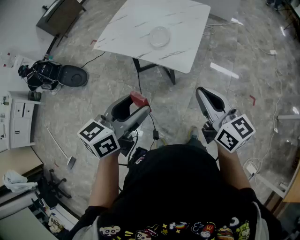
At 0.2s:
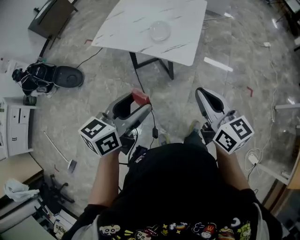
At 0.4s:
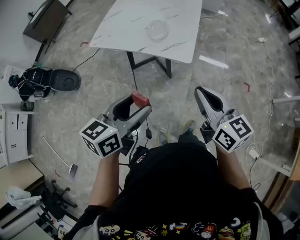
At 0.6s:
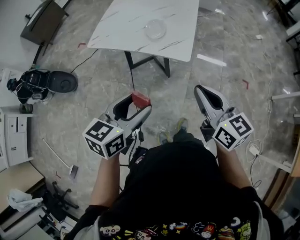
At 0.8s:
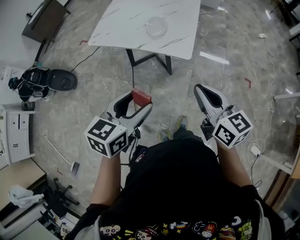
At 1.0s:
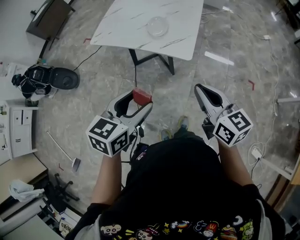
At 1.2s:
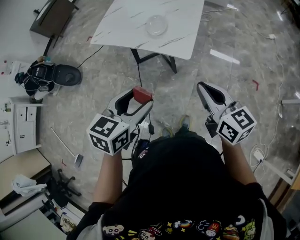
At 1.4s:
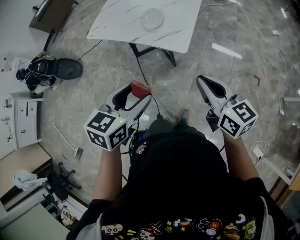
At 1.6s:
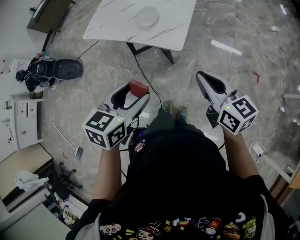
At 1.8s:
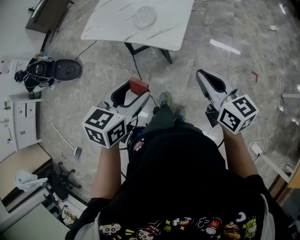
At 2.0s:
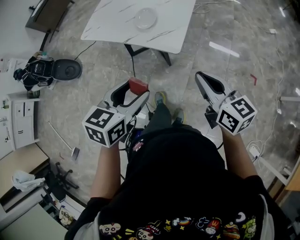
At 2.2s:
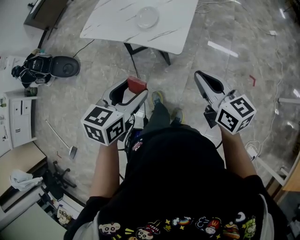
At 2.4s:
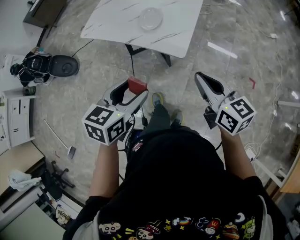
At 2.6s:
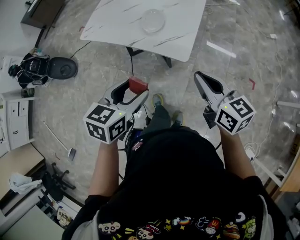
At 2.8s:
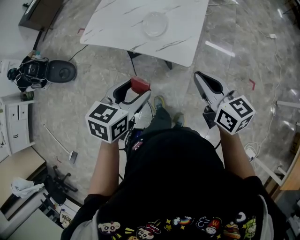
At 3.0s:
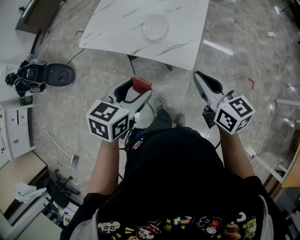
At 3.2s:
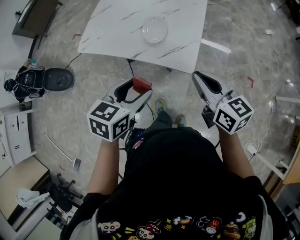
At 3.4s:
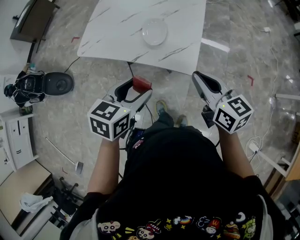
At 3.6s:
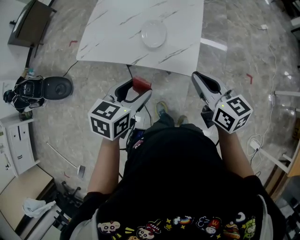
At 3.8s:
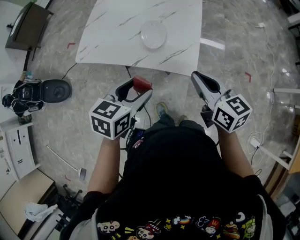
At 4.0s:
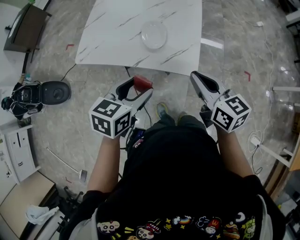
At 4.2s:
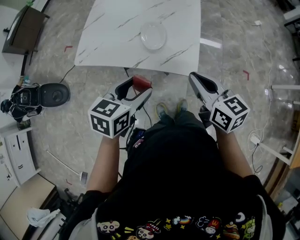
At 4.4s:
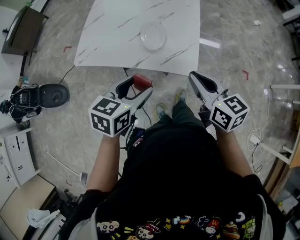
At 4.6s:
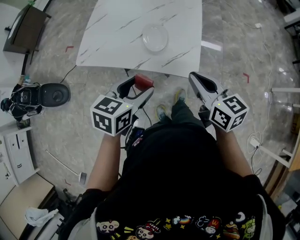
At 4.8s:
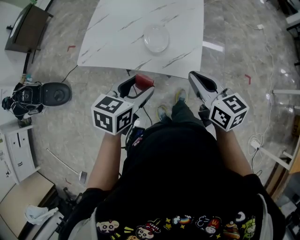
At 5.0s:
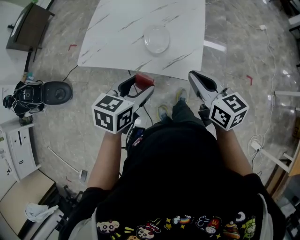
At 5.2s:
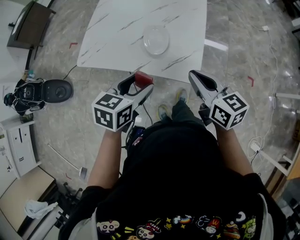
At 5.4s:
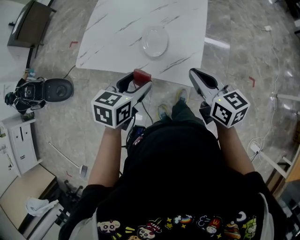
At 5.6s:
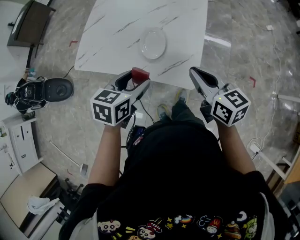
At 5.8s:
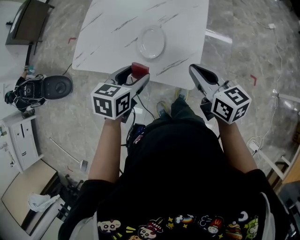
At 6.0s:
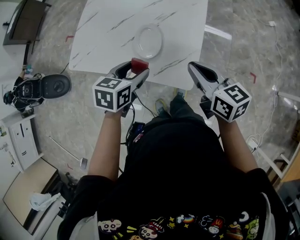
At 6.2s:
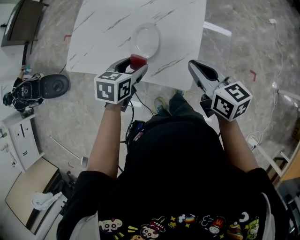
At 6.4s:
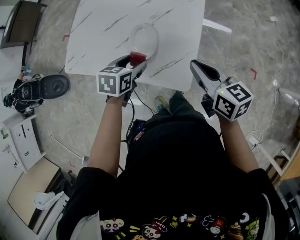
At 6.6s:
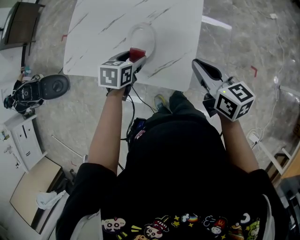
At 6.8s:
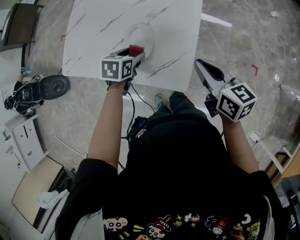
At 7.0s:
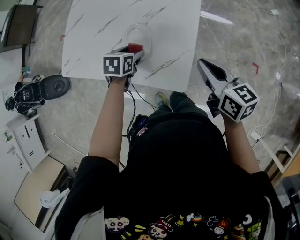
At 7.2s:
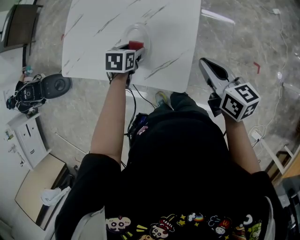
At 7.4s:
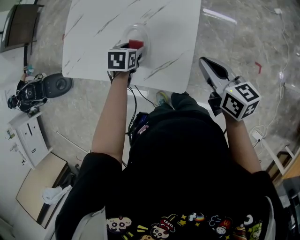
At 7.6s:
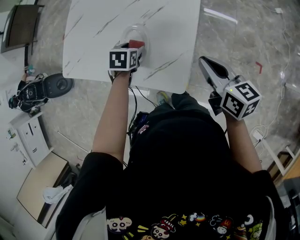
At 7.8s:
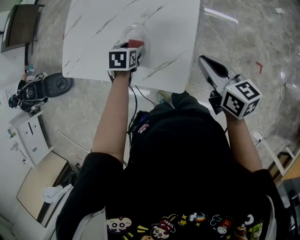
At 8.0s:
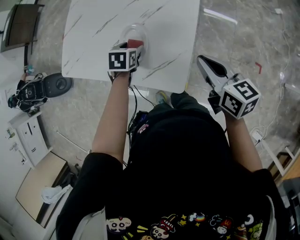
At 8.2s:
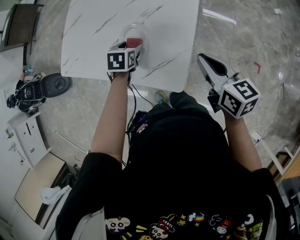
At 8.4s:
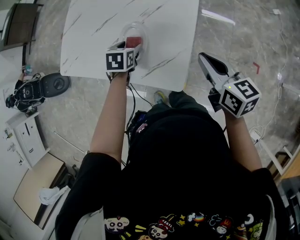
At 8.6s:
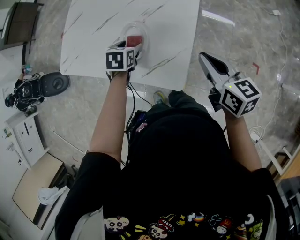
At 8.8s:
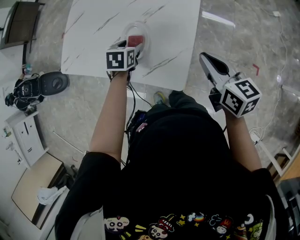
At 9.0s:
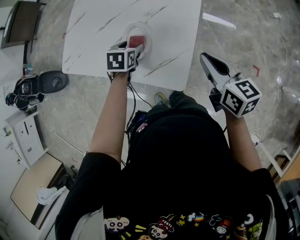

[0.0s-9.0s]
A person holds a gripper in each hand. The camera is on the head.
0.0s to 1.6s: Both grippers move downward, some 5 cm. The left gripper rotates approximately 20 degrees.
1.6s to 3.0s: Both grippers travel together forward and to the left, roughly 15 cm.
3.0s to 4.4s: The left gripper shifts about 10 cm forward and to the left; the right gripper goes approximately 5 cm to the left.
4.4s to 6.0s: The left gripper moves forward and downward, approximately 15 cm; the right gripper goes some 15 cm forward.
6.0s to 7.6s: The left gripper is displaced downward and forward by some 20 cm; the right gripper goes about 10 cm to the right and forward.
7.6s to 9.0s: The grippers stay close to where they were, moving slightly.

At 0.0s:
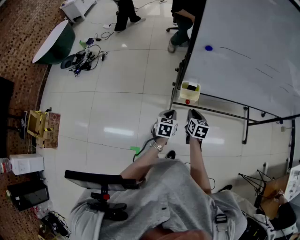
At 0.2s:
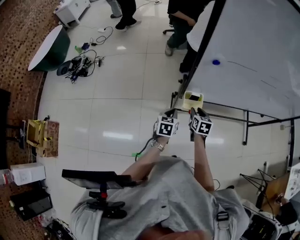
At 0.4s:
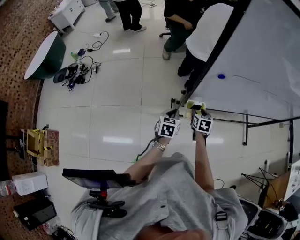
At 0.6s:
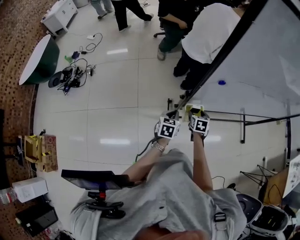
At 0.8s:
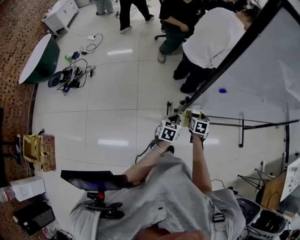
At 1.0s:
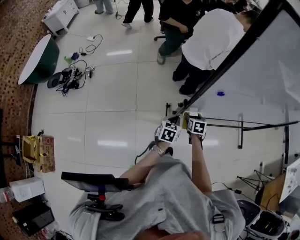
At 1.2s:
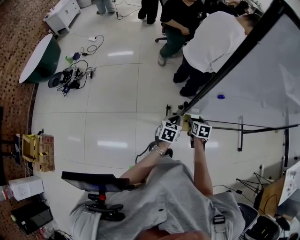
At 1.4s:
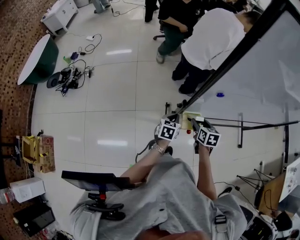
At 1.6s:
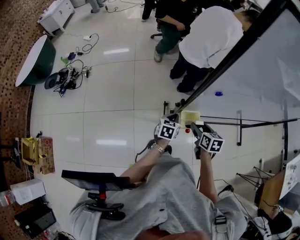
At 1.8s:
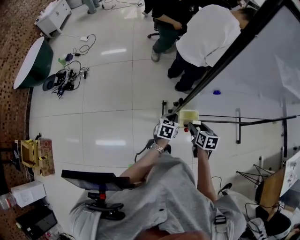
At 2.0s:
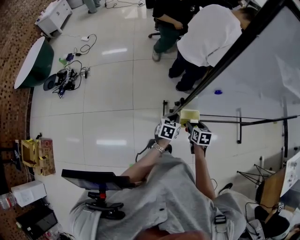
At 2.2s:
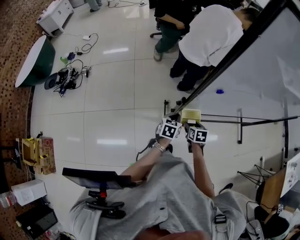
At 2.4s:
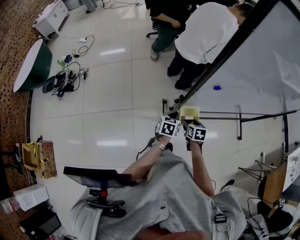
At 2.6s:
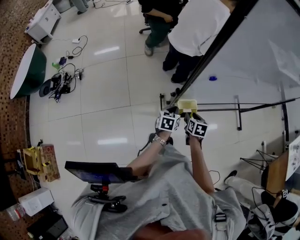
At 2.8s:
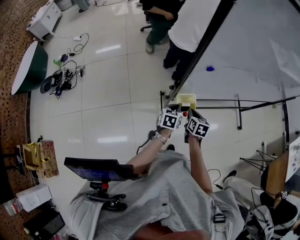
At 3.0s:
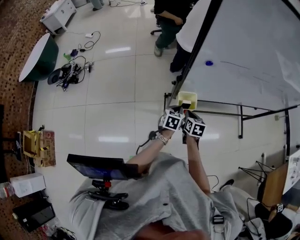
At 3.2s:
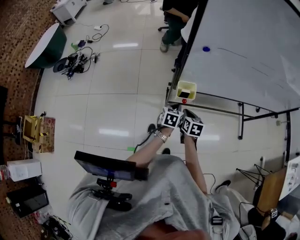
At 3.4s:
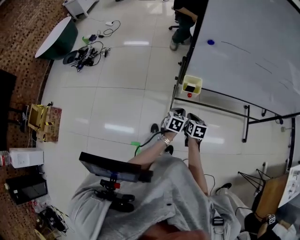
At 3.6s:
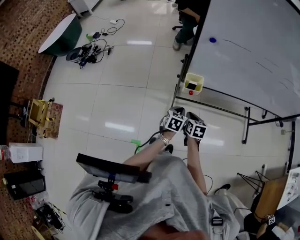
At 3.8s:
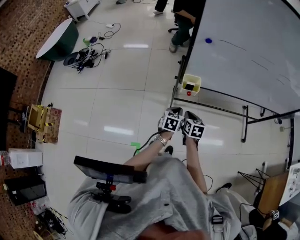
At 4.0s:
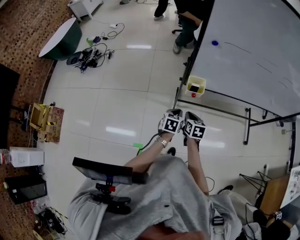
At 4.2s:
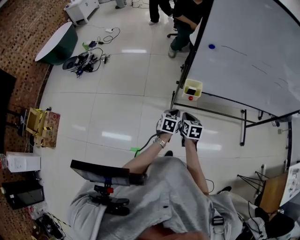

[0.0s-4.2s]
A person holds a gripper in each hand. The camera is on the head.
0.0s to 1.4s: Both grippers move forward, approximately 15 cm. The right gripper opens.
1.4s to 2.8s: The left gripper is displaced to the right by roughly 5 cm. Meanwhile the right gripper is displaced backward by roughly 5 cm, reaches some 10 cm downward, then returns, and closes.
2.8s to 4.2s: Both grippers travel together backward, about 15 cm. The right gripper rotates roughly 20 degrees.

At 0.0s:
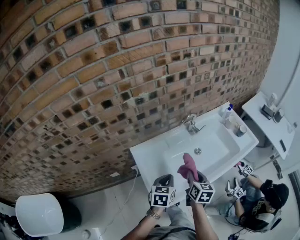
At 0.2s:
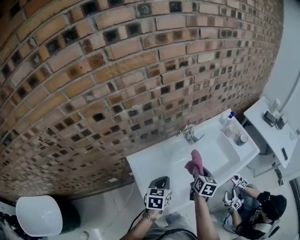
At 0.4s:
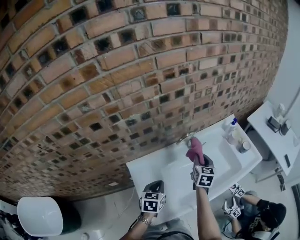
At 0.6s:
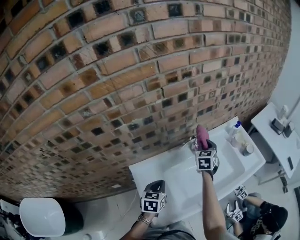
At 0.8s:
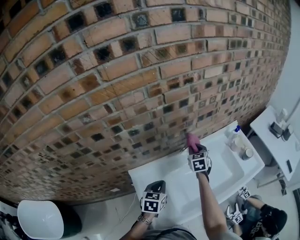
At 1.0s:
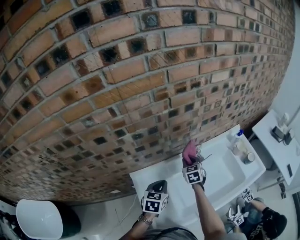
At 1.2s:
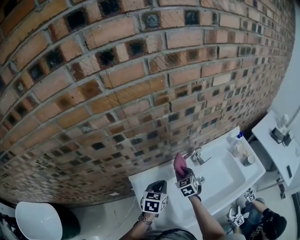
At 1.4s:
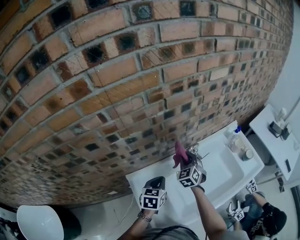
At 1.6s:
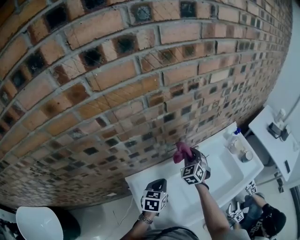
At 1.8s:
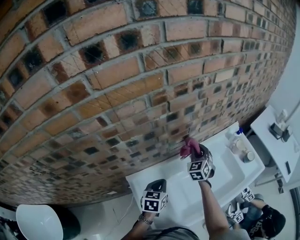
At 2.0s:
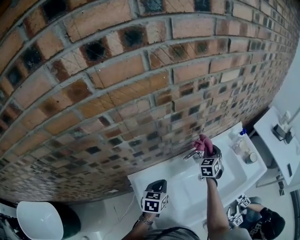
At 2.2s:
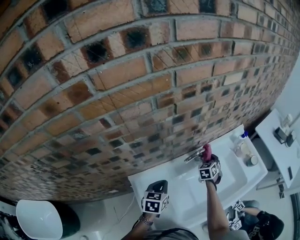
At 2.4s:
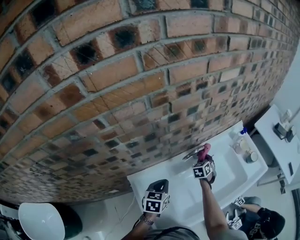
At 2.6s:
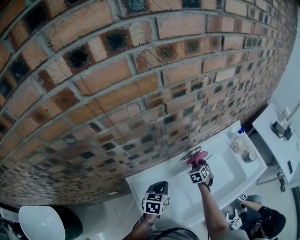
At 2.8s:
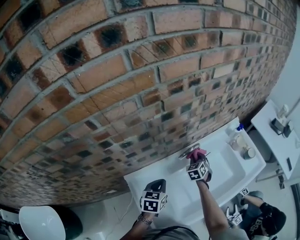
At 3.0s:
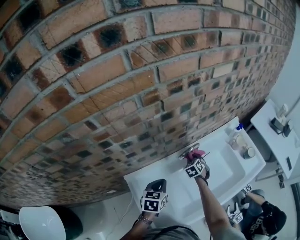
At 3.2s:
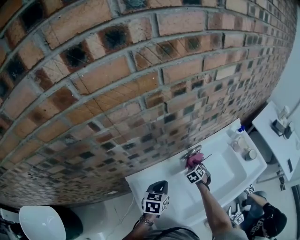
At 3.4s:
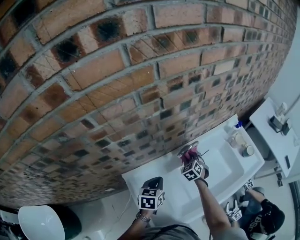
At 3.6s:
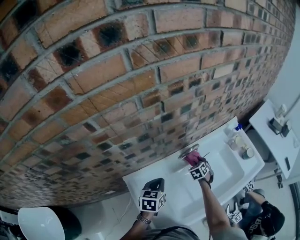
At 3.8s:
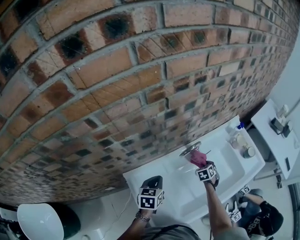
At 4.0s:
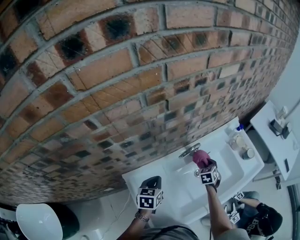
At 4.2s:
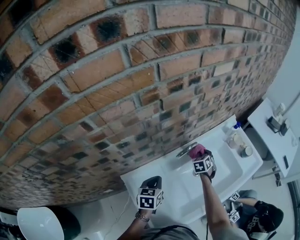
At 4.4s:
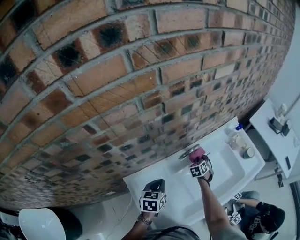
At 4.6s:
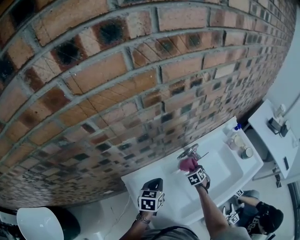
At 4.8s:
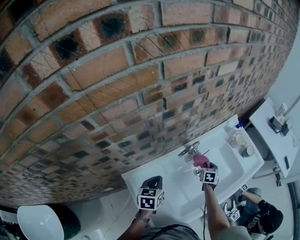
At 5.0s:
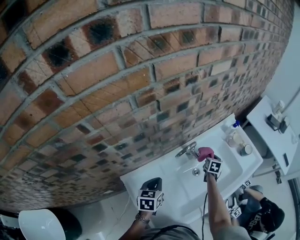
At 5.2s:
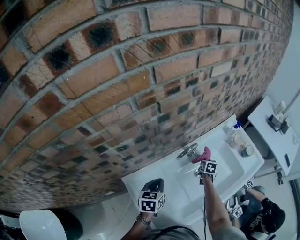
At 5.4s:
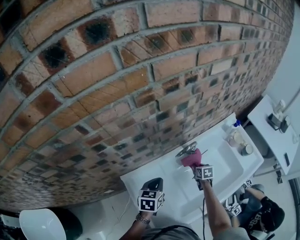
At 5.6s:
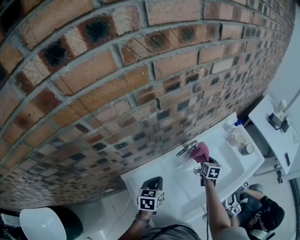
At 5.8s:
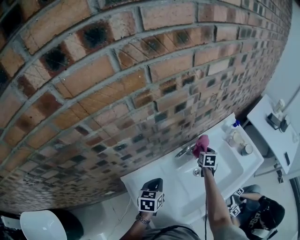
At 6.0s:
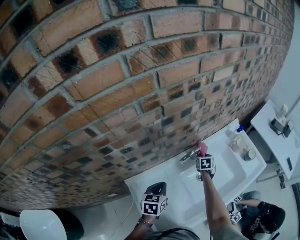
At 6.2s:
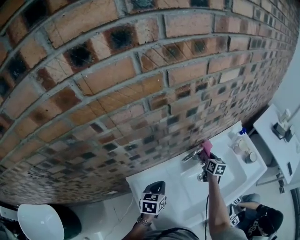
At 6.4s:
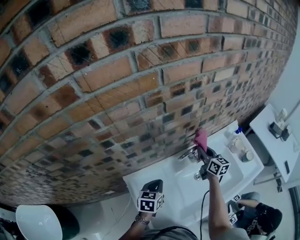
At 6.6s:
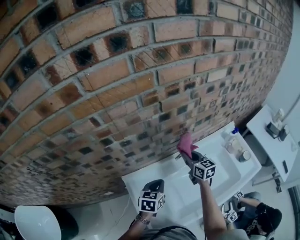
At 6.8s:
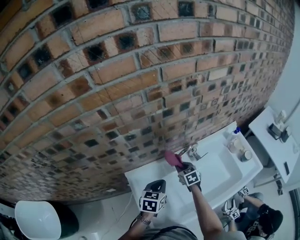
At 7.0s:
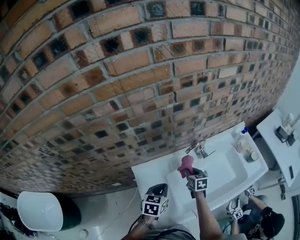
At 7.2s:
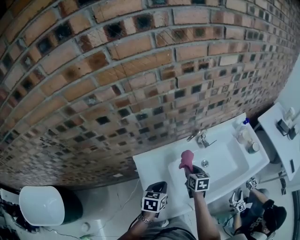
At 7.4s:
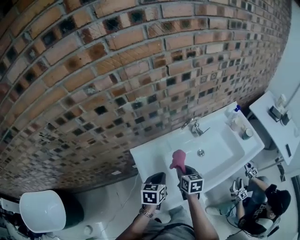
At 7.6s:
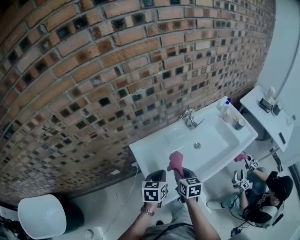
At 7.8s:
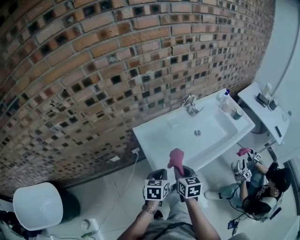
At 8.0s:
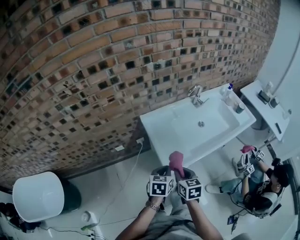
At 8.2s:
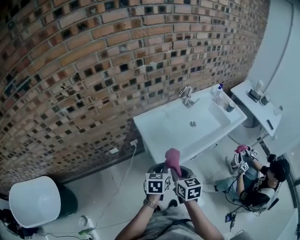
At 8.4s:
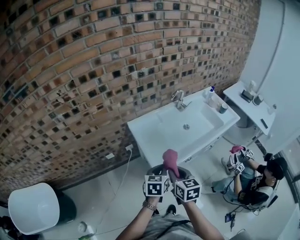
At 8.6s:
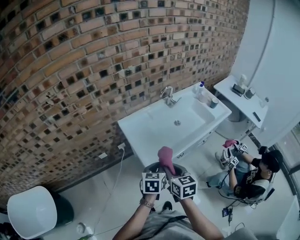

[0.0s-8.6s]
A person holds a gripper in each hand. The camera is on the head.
0.0s to 1.4s: The right gripper goes forward and backward, about 30 cm each way, reversing 2 times, and twists roughly 50 degrees counterclockwise, seen from behind; the left gripper moves forward, roughly 20 cm.
1.4s to 2.8s: The right gripper travels downward, to the right and forward by about 15 cm.
2.8s to 4.4s: The right gripper swings left and right, about 15 cm each way, with 2 reversals.
4.4s to 5.8s: The right gripper moves left and right over some 10 cm, changing direction 2 times, and swivels roughly 30 degrees.
5.8s to 7.2s: The left gripper moves backward, roughly 15 cm, while the right gripper moves backward and to the left, approximately 25 cm, and changes its angle by some 30 degrees.
7.2s to 8.6s: Both grippers move backward, roughly 35 cm.

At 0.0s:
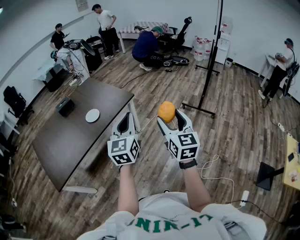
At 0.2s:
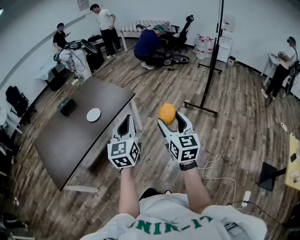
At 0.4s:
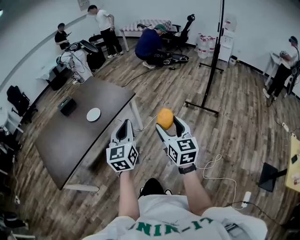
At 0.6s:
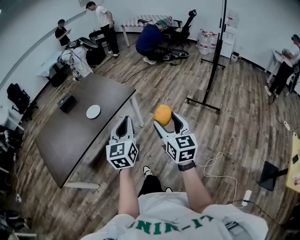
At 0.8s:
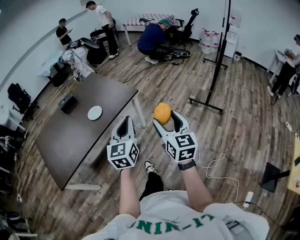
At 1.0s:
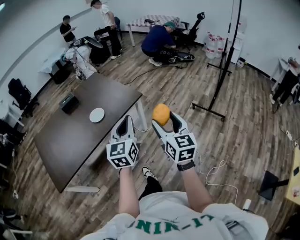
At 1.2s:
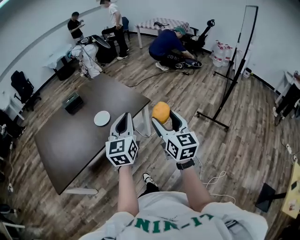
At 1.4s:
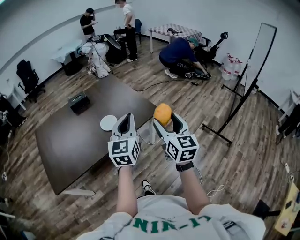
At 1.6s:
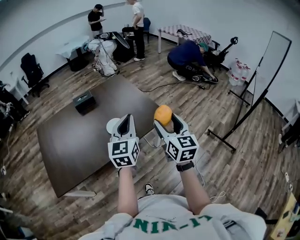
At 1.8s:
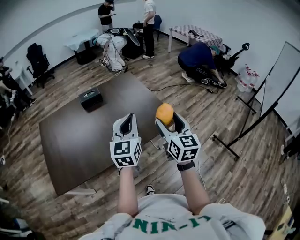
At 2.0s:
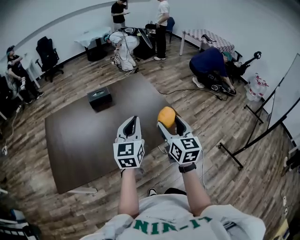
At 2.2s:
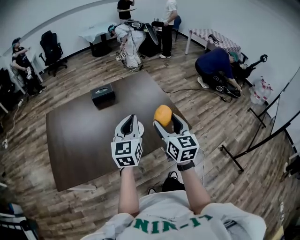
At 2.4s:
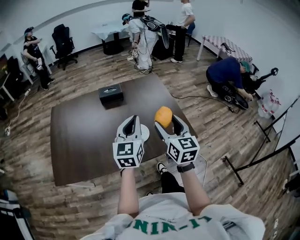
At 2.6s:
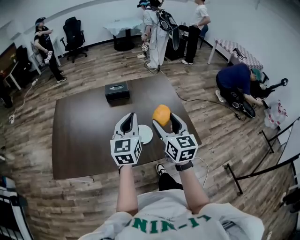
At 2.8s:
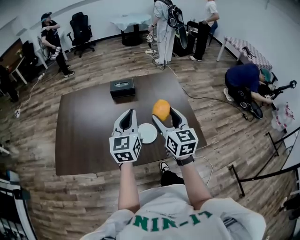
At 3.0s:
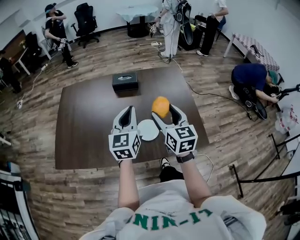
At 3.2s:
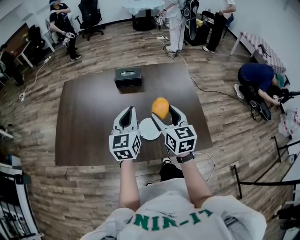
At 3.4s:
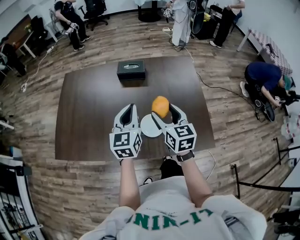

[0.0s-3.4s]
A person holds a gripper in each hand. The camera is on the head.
0.0s to 1.6s: Both grippers travel together forward and to the left, approximately 35 cm.
1.6s to 3.4s: The left gripper changes place by some 35 cm, and turns by roughly 30 degrees; the right gripper shifts by approximately 40 cm, and swivels some 40 degrees.
